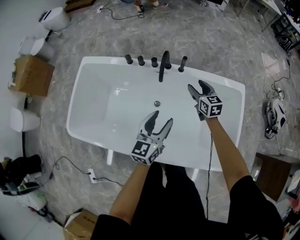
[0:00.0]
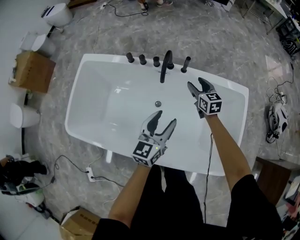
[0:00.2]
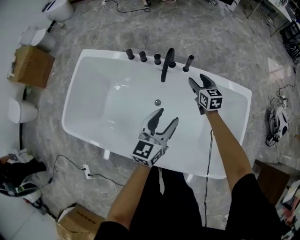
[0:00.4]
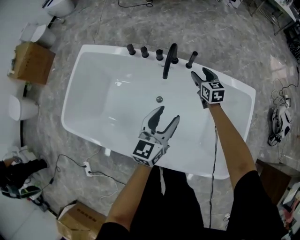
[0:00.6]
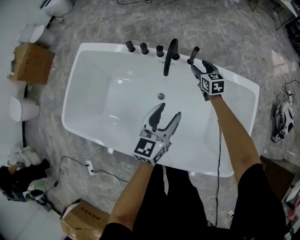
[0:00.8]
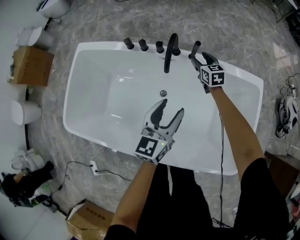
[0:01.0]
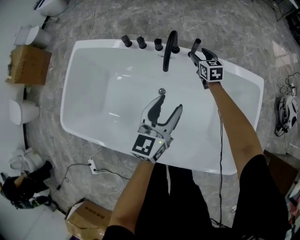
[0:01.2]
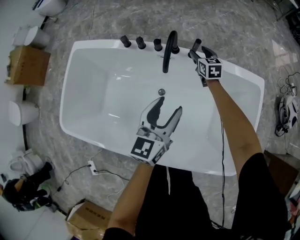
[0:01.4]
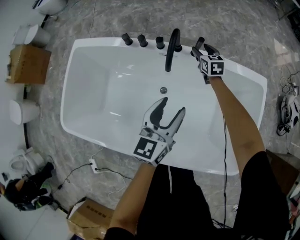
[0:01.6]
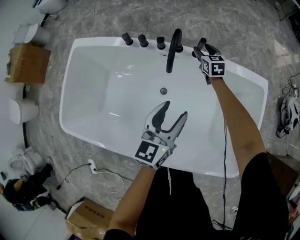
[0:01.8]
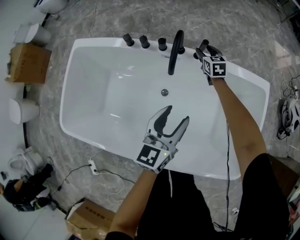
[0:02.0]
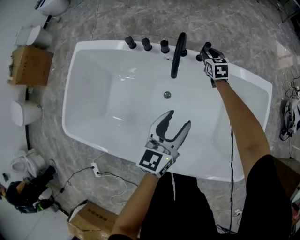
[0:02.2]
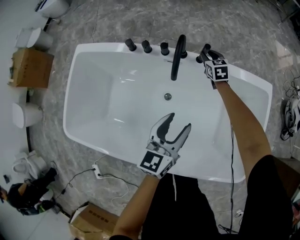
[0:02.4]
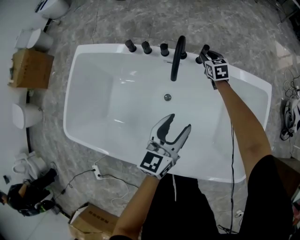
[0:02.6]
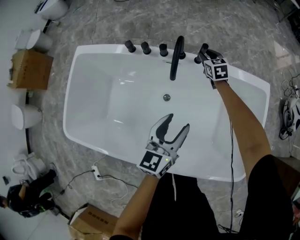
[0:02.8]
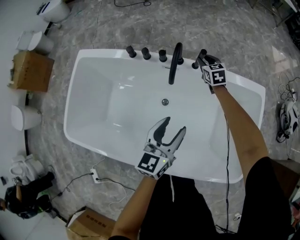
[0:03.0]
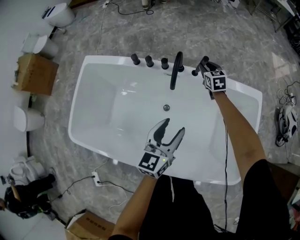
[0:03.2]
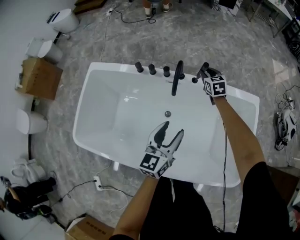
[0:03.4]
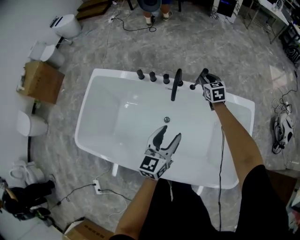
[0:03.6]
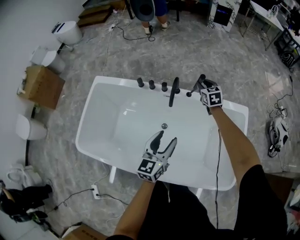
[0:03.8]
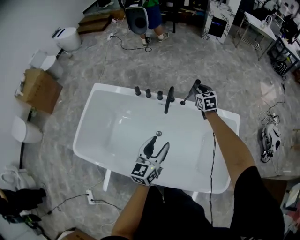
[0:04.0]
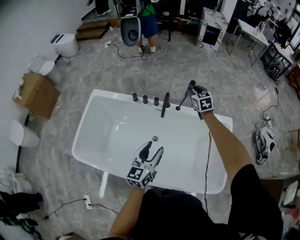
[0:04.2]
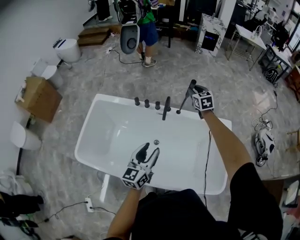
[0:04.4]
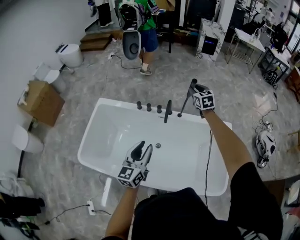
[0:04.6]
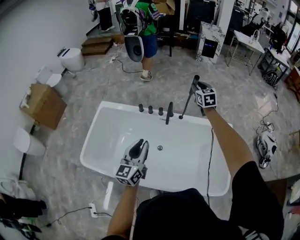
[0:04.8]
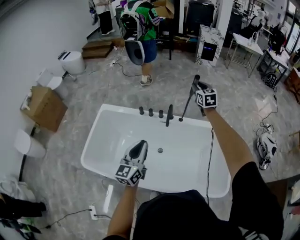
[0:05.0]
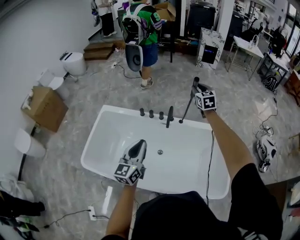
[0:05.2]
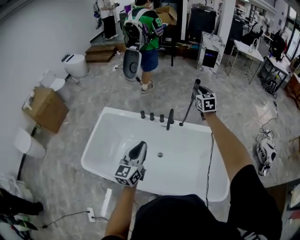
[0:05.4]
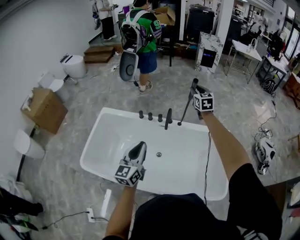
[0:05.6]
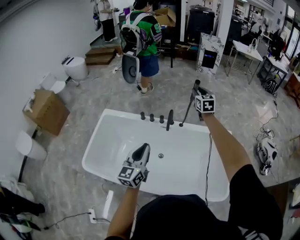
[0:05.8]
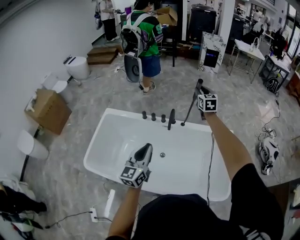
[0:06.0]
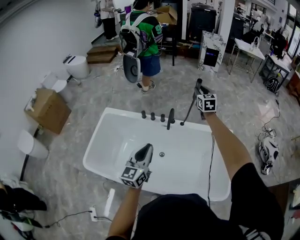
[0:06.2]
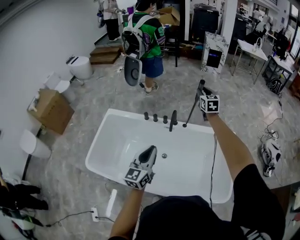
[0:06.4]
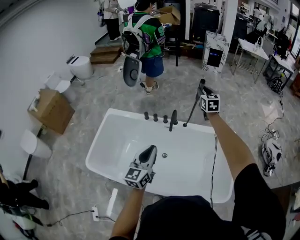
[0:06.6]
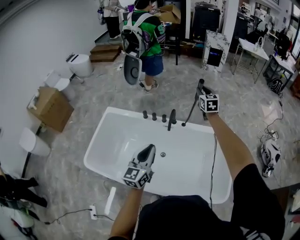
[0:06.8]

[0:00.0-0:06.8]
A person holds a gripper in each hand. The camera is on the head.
0:00.0 to 0:01.4: The left gripper moves forward and downward, about 10 cm; the right gripper shifts roughly 25 cm forward and downward.
0:01.4 to 0:02.8: The right gripper closes its fingers.
0:02.8 to 0:04.0: The left gripper is displaced upward by about 15 cm, while the right gripper heads upward, covering roughly 25 cm.
0:04.0 to 0:05.4: The right gripper goes some 25 cm upward; the left gripper shifts about 20 cm upward, to the left and backward, and closes up.
0:05.4 to 0:06.8: The left gripper heads to the right, covering some 5 cm.

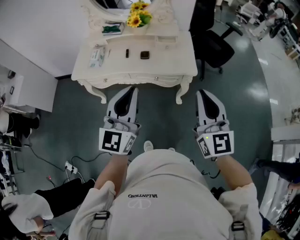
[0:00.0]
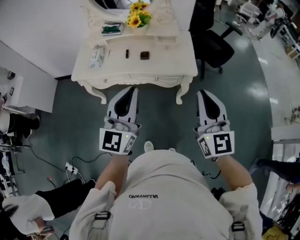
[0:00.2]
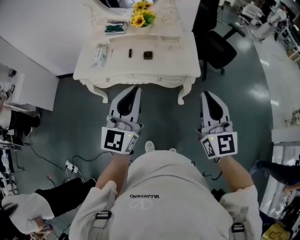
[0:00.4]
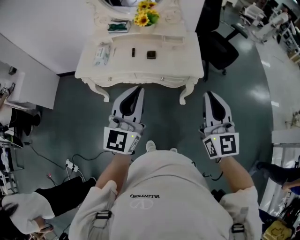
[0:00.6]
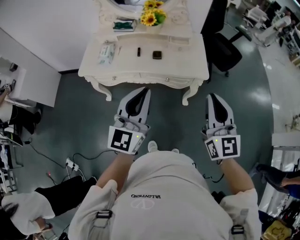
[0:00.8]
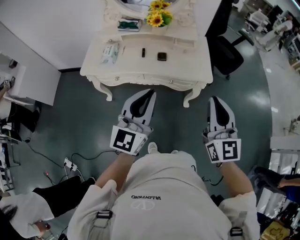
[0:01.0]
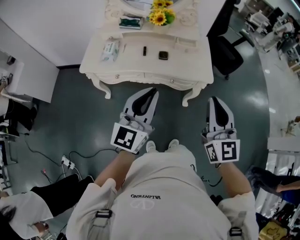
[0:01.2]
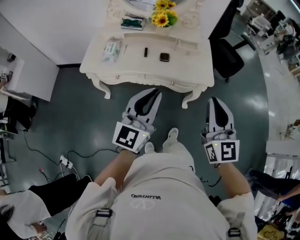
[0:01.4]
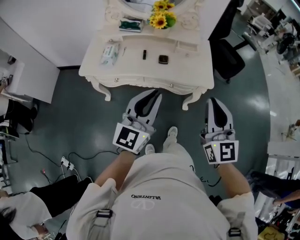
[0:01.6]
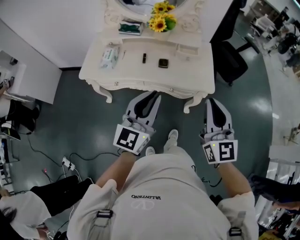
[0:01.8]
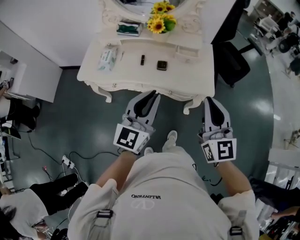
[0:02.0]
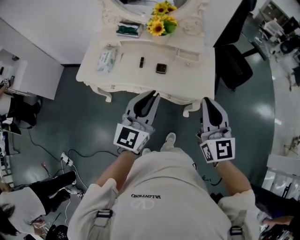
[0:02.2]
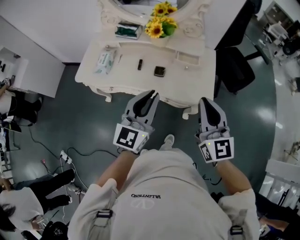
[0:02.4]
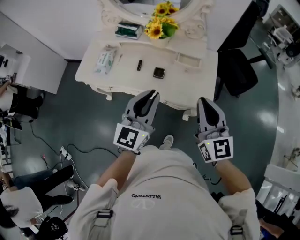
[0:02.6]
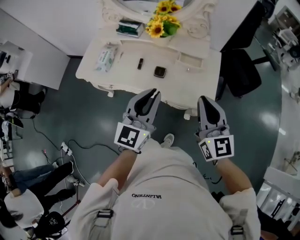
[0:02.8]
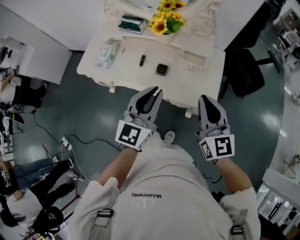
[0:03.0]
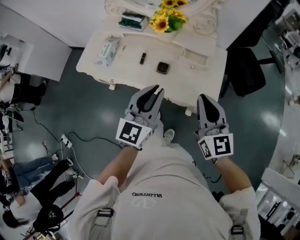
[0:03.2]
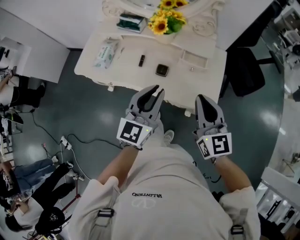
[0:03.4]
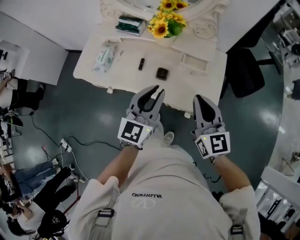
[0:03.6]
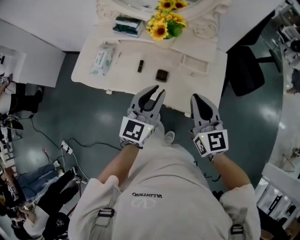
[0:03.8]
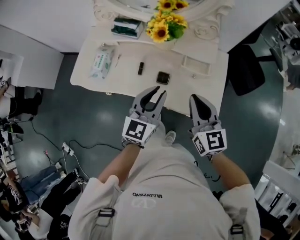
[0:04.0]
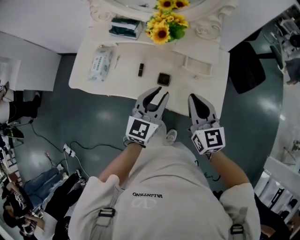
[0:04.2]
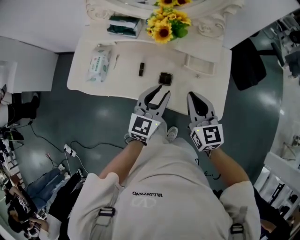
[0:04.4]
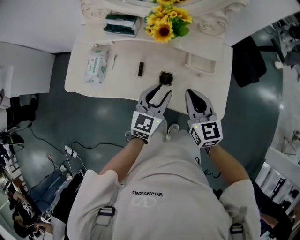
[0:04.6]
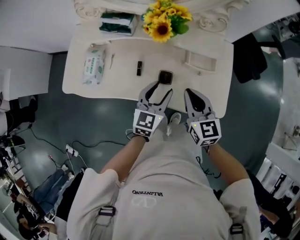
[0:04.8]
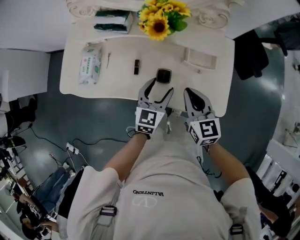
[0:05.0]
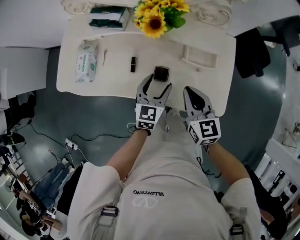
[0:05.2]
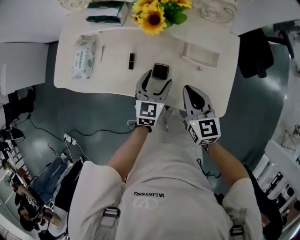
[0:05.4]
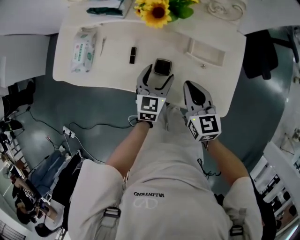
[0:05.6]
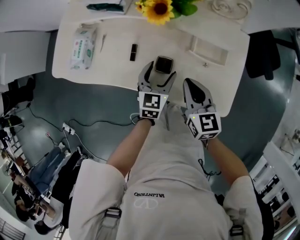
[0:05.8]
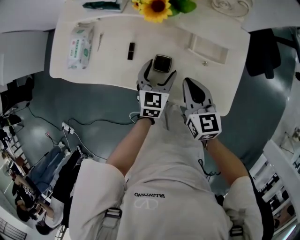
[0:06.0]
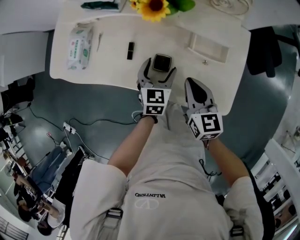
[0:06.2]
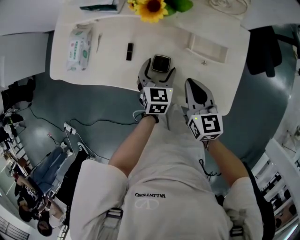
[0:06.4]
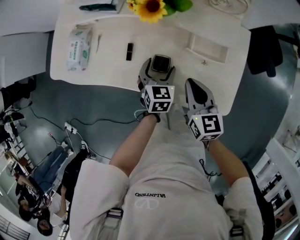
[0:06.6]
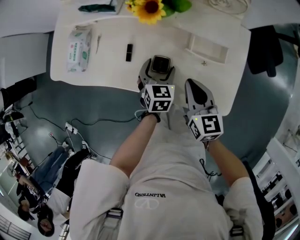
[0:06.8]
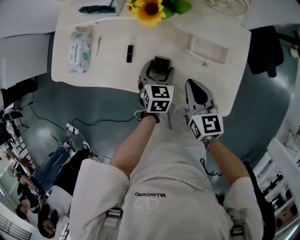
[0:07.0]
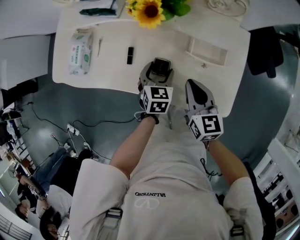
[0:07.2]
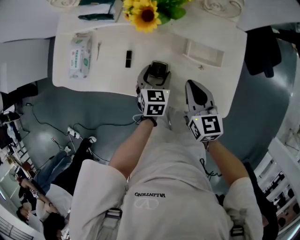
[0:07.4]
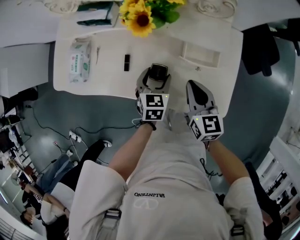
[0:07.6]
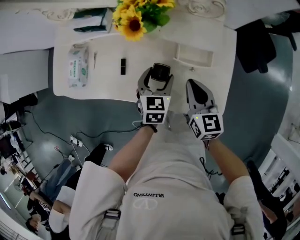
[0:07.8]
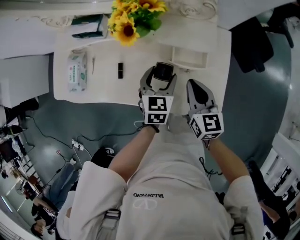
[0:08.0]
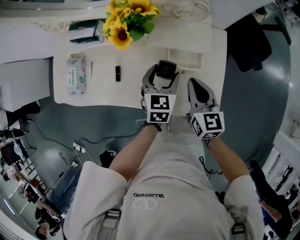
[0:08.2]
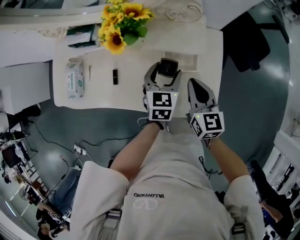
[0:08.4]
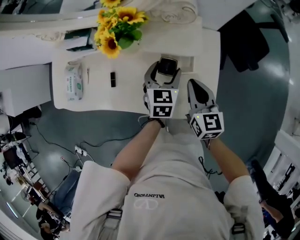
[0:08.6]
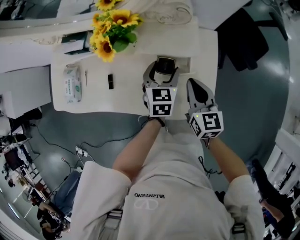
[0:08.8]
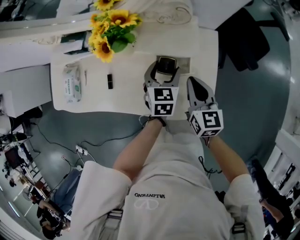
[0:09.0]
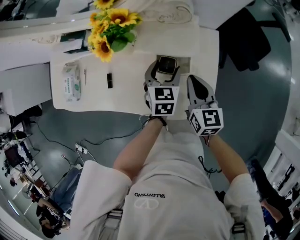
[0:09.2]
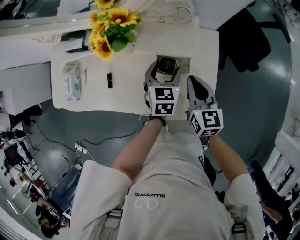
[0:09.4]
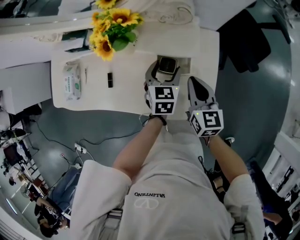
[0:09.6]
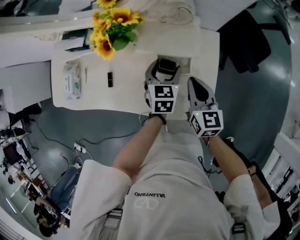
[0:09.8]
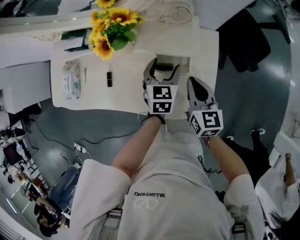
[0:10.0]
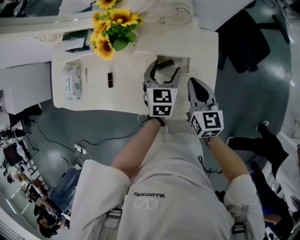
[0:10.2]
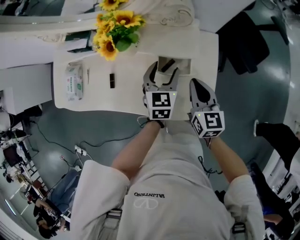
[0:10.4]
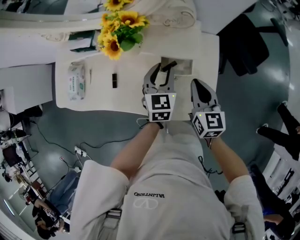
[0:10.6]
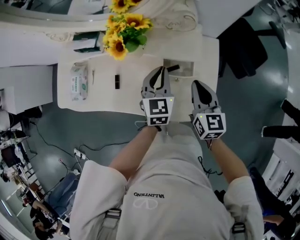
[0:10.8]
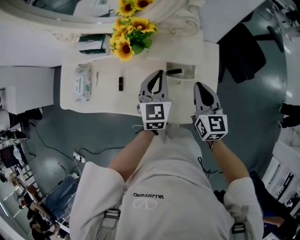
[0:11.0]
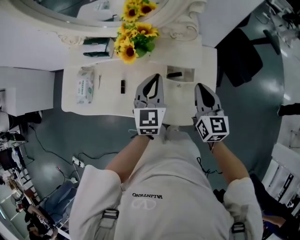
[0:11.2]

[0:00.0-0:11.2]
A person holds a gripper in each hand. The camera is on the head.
0:00.0 to 0:01.6: The left gripper travels forward by about 5 cm; the right gripper moves to the left and forward, approximately 10 cm.
0:01.6 to 0:03.2: The left gripper is displaced forward and to the right by approximately 20 cm. Meanwhile the right gripper goes roughly 20 cm forward, and swivels roughly 20 degrees.
0:03.2 to 0:04.8: The right gripper moves downward, forward and to the left, roughly 20 cm. The left gripper heads downward and forward, covering approximately 25 cm, turns by some 20 degrees, and opens up.
0:04.8 to 0:06.4: The right gripper is displaced downward by roughly 10 cm, while the left gripper heads downward, covering approximately 15 cm, rotates about 30 degrees, and opens up.
0:06.4 to 0:08.0: The left gripper shifts about 10 cm upward and to the right. The right gripper travels to the right by approximately 5 cm.
0:08.0 to 0:09.6: The right gripper heads to the right, covering some 5 cm, while the left gripper moves to the right and forward, some 10 cm.
0:09.6 to 0:11.2: The right gripper travels upward by about 10 cm, while the left gripper moves upward and to the left, roughly 15 cm, changes its angle by approximately 20 degrees, and closes.

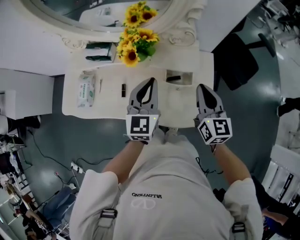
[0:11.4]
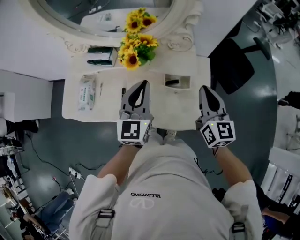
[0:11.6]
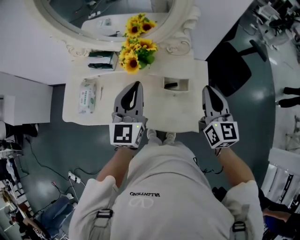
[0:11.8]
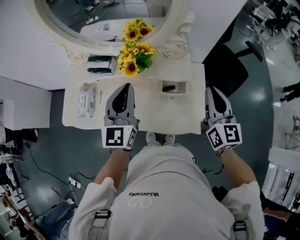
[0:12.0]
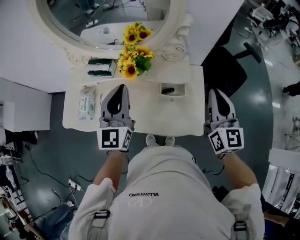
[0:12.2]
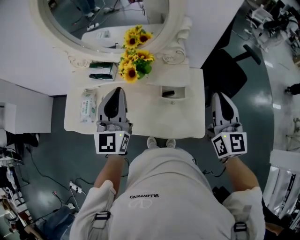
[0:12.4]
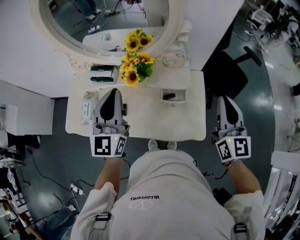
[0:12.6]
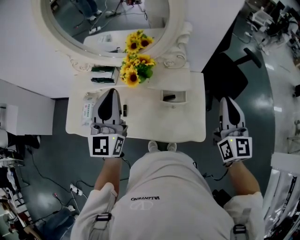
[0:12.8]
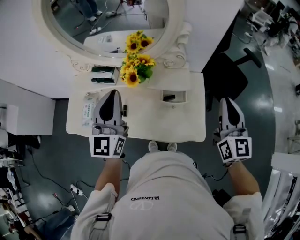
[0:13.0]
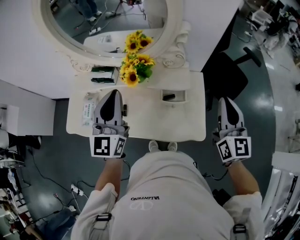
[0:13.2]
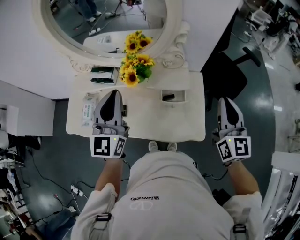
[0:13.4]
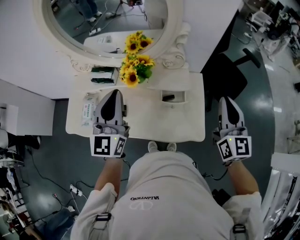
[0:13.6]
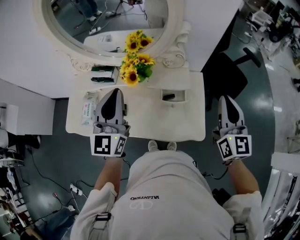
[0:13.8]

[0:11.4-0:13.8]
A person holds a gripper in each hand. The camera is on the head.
0:11.4 to 0:12.6: The right gripper moves upward and to the right, roughly 15 cm. The left gripper moves upward and to the left, some 20 cm.
0:12.6 to 0:13.8: There are only small adjustments of the grippers.

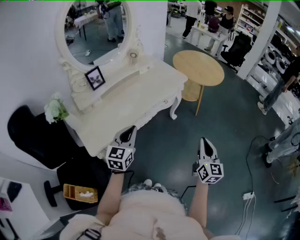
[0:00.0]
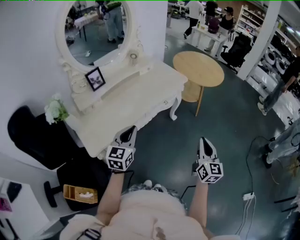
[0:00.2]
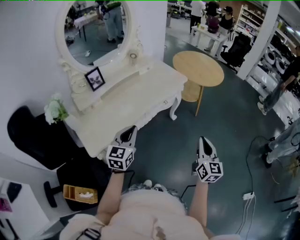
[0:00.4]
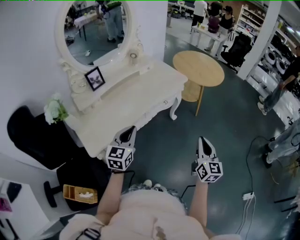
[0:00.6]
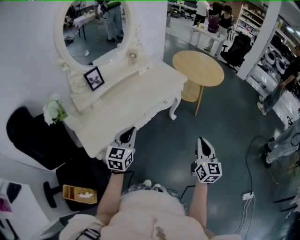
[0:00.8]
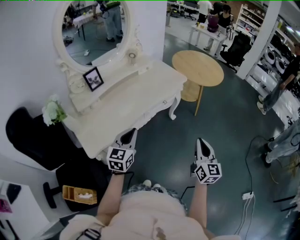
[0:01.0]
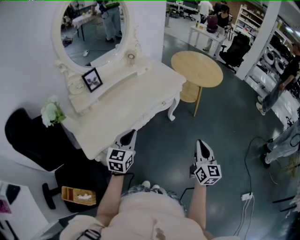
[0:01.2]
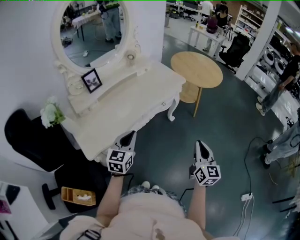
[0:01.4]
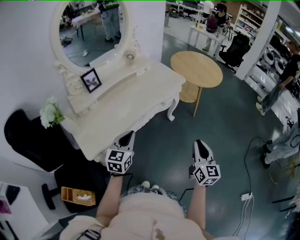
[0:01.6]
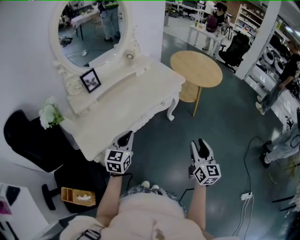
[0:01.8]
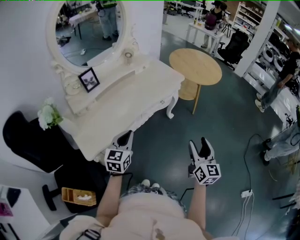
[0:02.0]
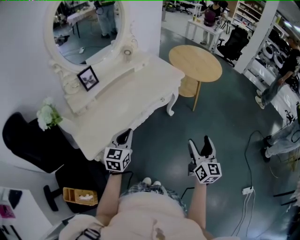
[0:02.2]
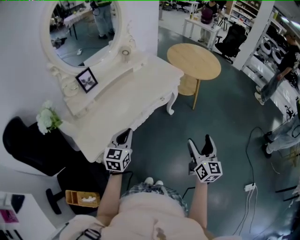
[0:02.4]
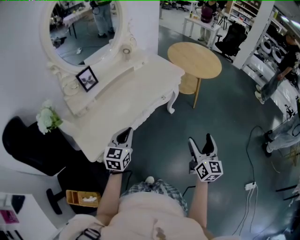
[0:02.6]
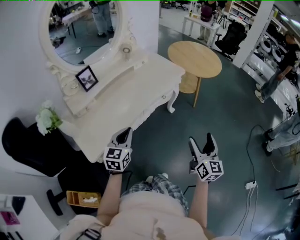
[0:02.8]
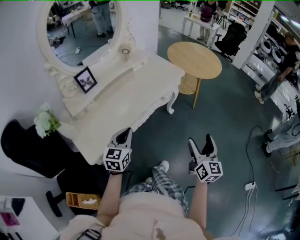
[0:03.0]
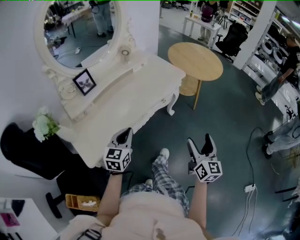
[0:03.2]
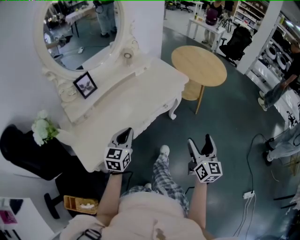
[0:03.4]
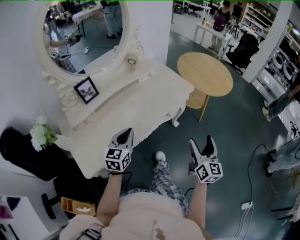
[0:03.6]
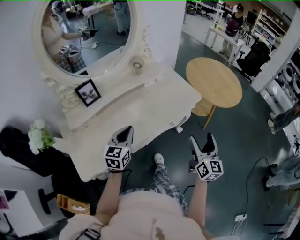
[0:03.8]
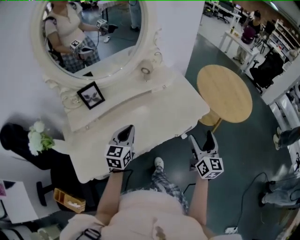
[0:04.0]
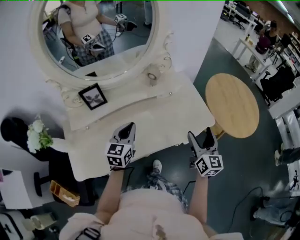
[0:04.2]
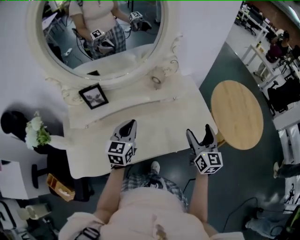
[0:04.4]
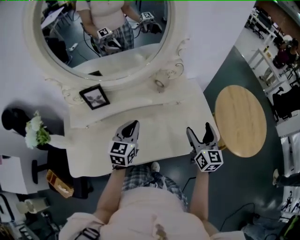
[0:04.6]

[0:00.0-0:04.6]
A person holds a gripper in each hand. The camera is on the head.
0:00.0 to 0:01.6: The grippers make only small movements.
0:01.6 to 0:03.0: The right gripper opens its fingers.
0:03.0 to 0:04.6: The right gripper changes place by roughly 50 cm, and swivels some 40 degrees. The left gripper shifts by some 35 cm, and rotates roughly 30 degrees.
